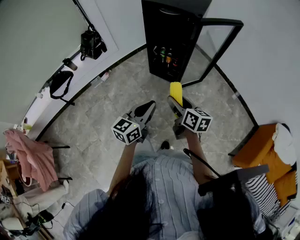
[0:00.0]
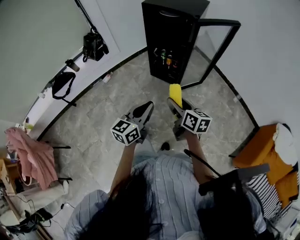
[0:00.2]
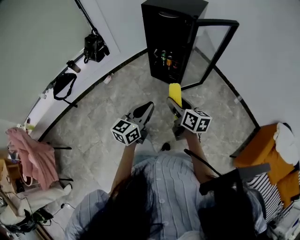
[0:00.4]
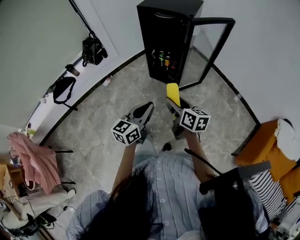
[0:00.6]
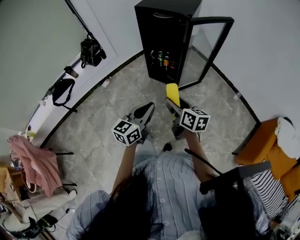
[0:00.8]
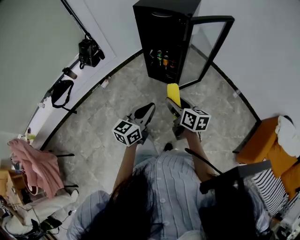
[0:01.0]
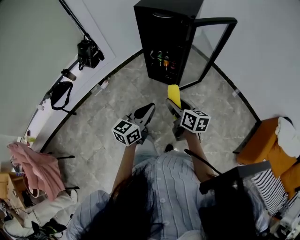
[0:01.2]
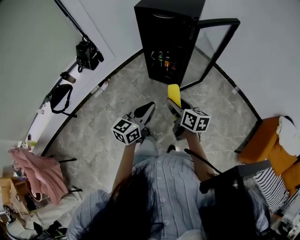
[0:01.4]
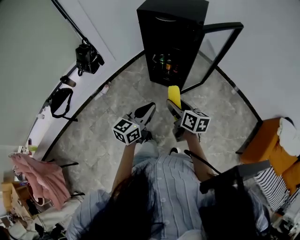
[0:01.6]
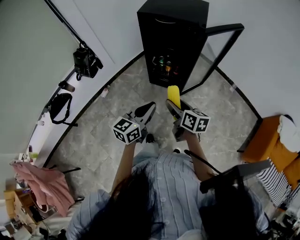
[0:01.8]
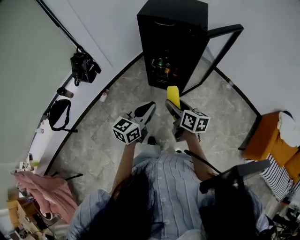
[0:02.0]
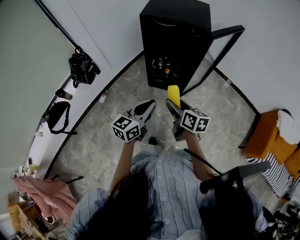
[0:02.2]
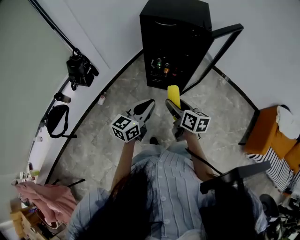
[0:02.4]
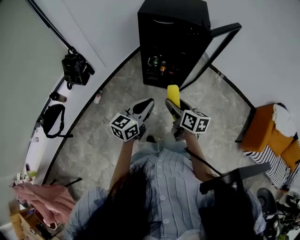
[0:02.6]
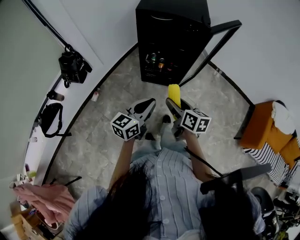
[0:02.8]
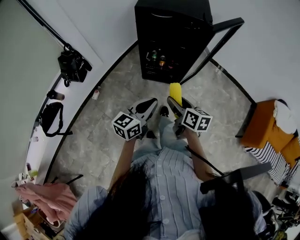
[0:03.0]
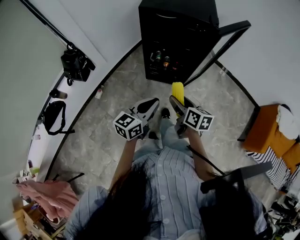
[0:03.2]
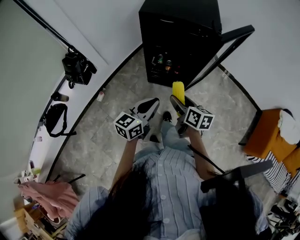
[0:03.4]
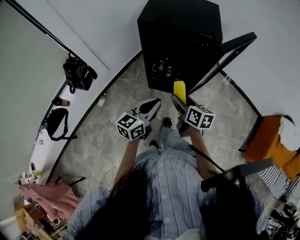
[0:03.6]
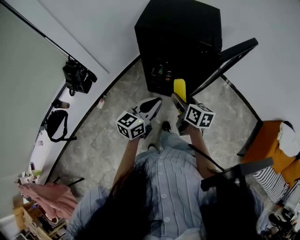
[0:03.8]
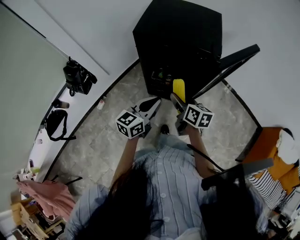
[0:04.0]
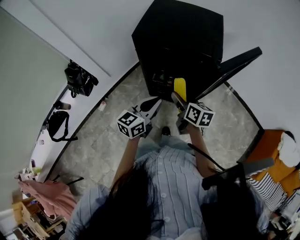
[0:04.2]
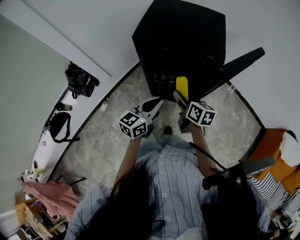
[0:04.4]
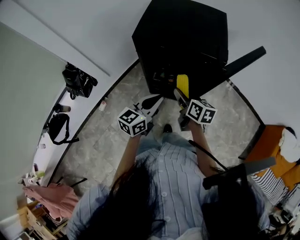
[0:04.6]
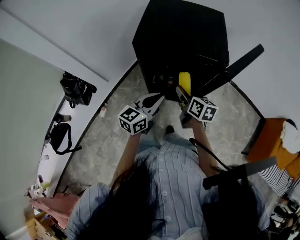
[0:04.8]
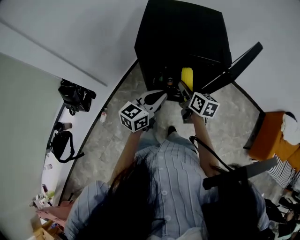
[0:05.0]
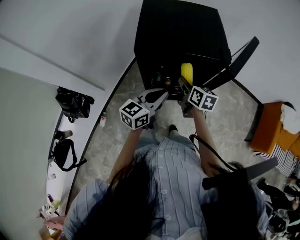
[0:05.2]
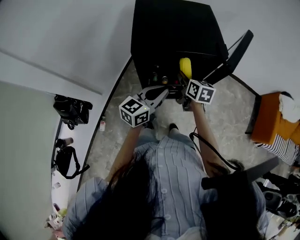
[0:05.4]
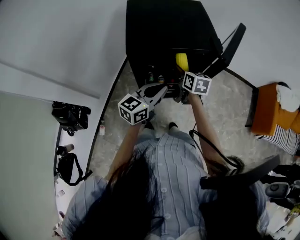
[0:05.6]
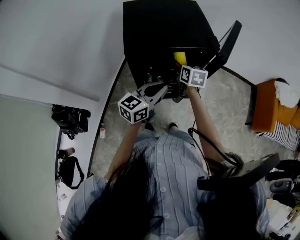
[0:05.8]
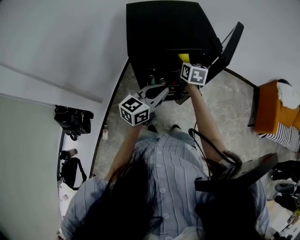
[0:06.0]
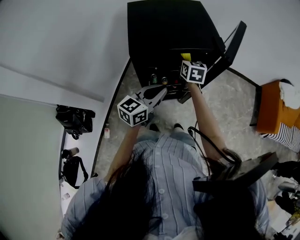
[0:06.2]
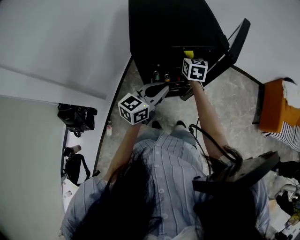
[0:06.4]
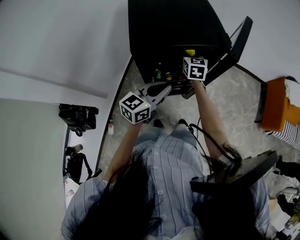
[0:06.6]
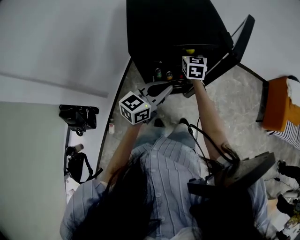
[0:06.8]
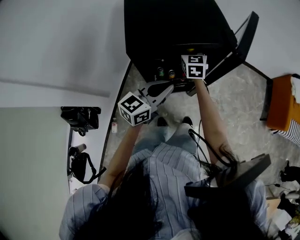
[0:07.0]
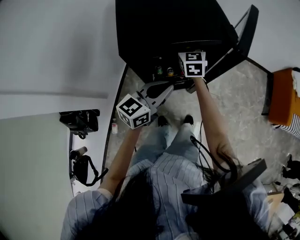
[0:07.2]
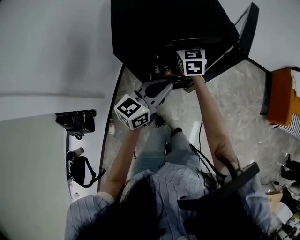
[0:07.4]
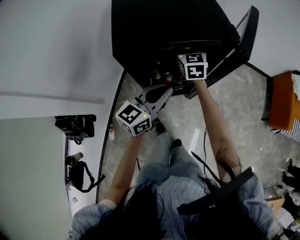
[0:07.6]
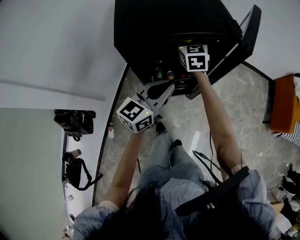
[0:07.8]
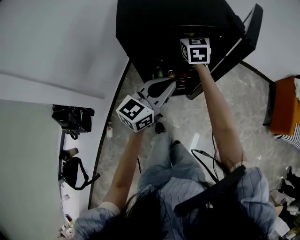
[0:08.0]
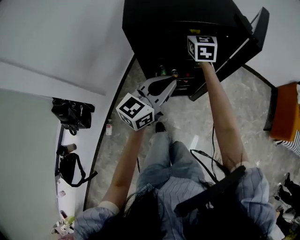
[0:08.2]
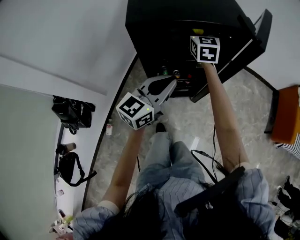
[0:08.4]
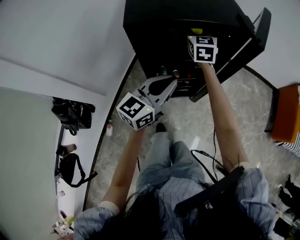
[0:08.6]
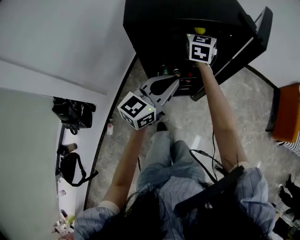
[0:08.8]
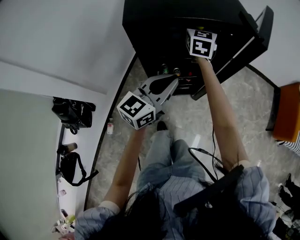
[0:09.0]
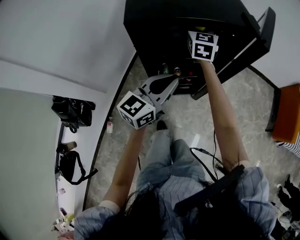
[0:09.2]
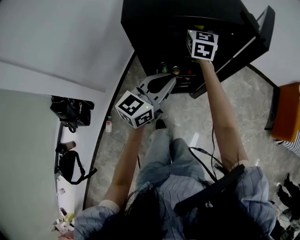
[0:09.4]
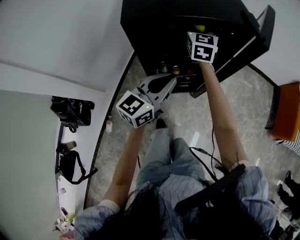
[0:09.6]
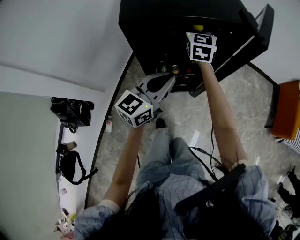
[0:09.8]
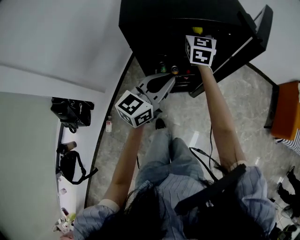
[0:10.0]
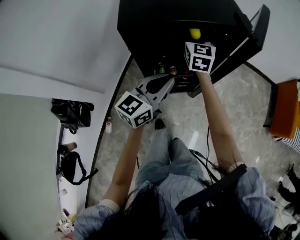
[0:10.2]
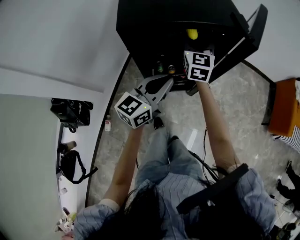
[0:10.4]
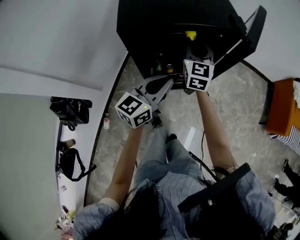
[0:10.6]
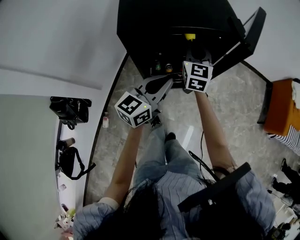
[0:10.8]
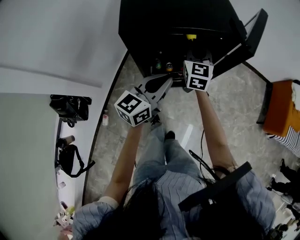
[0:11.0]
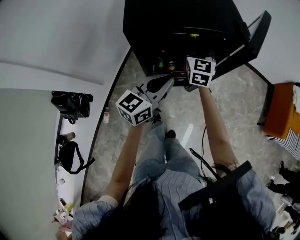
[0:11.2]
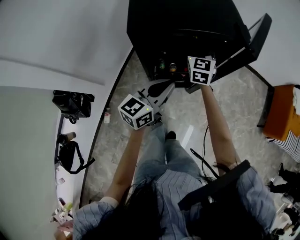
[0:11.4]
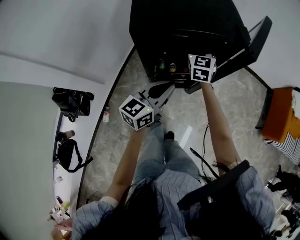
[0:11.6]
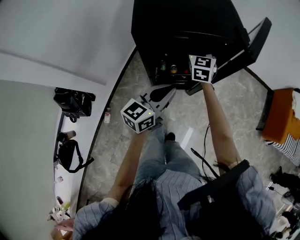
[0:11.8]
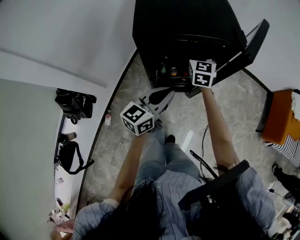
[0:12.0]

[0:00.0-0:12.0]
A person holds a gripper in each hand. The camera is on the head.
0:00.0 to 0:01.6: Both grippers travel together forward and to the left, approximately 10 cm.
0:01.6 to 0:03.0: The two grippers go about 10 cm to the left and forward.
0:03.0 to 0:04.4: Both grippers move forward, about 25 cm.
0:04.4 to 0:06.0: The right gripper changes place by approximately 15 cm, and swivels about 40 degrees. The left gripper changes place by about 10 cm, and rotates roughly 30 degrees.
0:06.0 to 0:07.6: The right gripper goes roughly 5 cm forward, and turns by roughly 20 degrees.
0:07.6 to 0:09.0: The grippers move only a little.
0:09.0 to 0:10.4: The right gripper goes some 5 cm backward.
0:10.4 to 0:12.0: The right gripper closes its fingers.

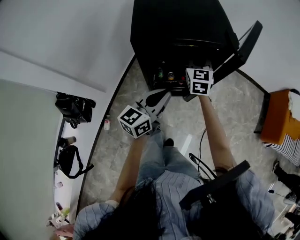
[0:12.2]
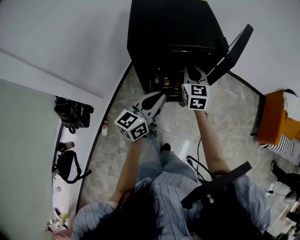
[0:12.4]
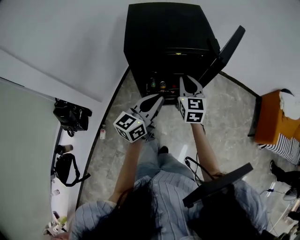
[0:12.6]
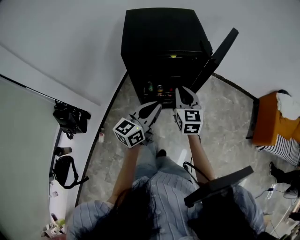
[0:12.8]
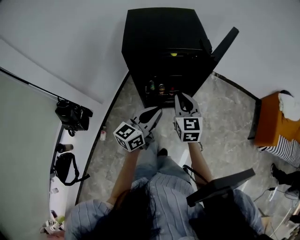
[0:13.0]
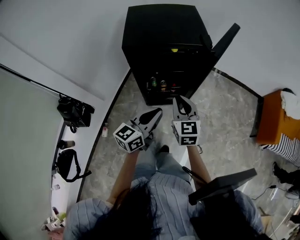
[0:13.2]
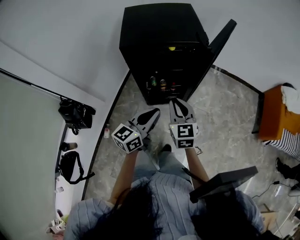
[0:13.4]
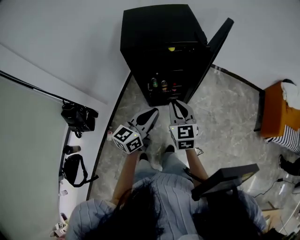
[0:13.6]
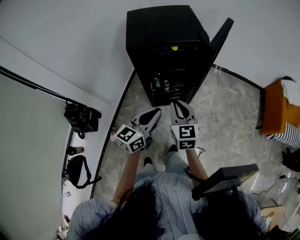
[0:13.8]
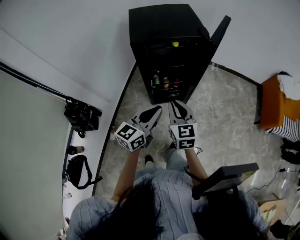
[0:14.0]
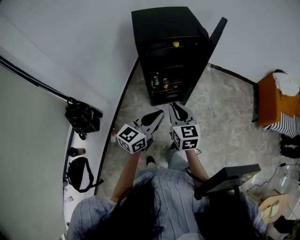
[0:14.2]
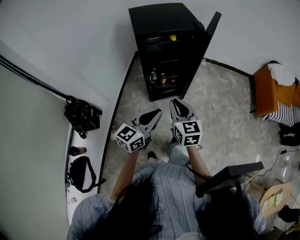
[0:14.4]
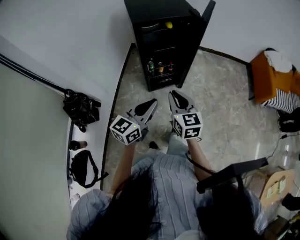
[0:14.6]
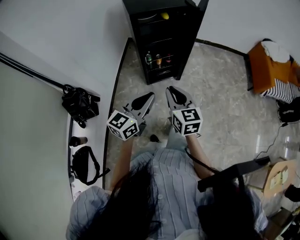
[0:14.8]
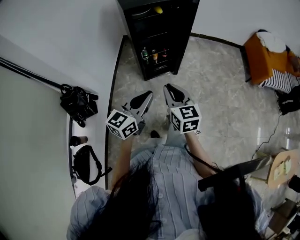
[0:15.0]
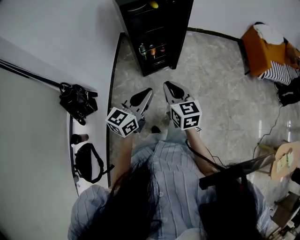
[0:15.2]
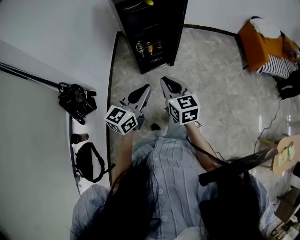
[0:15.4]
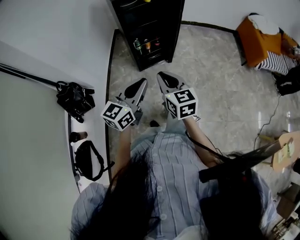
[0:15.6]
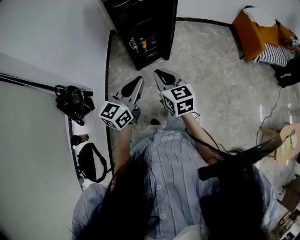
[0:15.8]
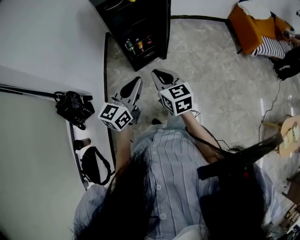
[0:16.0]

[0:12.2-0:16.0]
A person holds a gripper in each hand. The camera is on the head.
0:12.2 to 0:13.4: The left gripper travels backward and to the right by roughly 10 cm; the right gripper shifts approximately 25 cm backward.
0:13.4 to 0:14.8: The grippers both shift backward by roughly 25 cm.
0:14.8 to 0:16.0: The right gripper moves backward, roughly 5 cm.

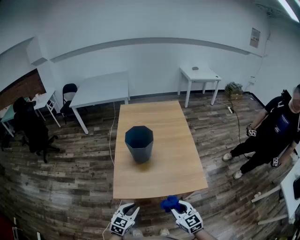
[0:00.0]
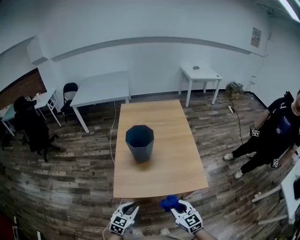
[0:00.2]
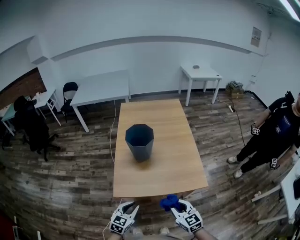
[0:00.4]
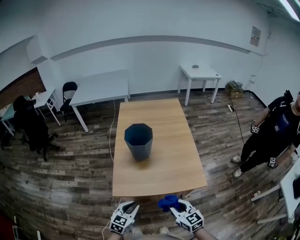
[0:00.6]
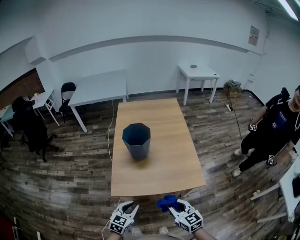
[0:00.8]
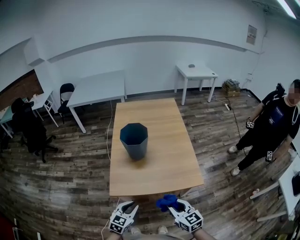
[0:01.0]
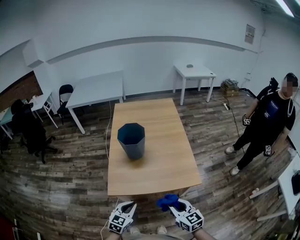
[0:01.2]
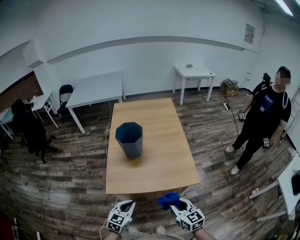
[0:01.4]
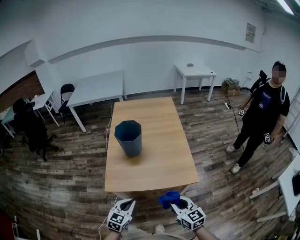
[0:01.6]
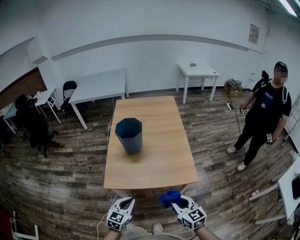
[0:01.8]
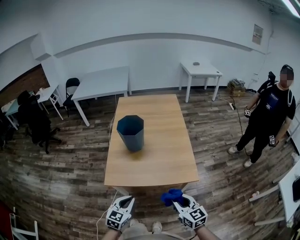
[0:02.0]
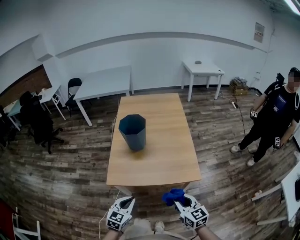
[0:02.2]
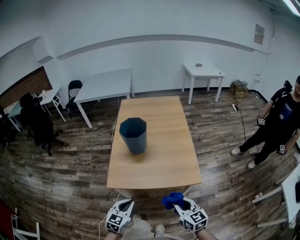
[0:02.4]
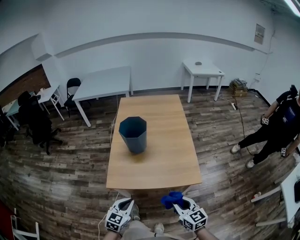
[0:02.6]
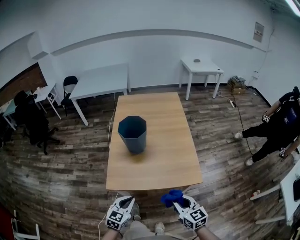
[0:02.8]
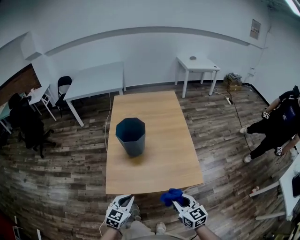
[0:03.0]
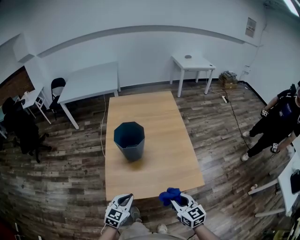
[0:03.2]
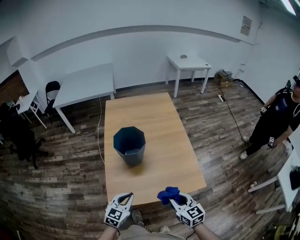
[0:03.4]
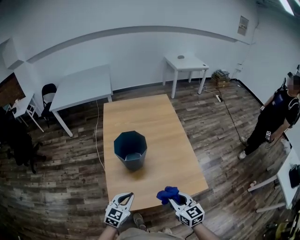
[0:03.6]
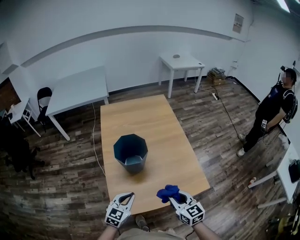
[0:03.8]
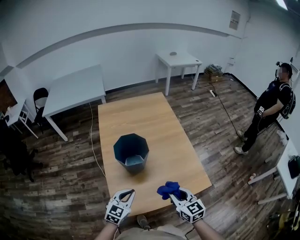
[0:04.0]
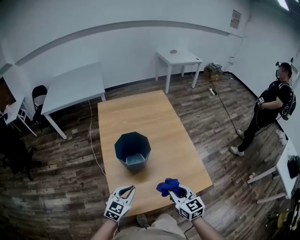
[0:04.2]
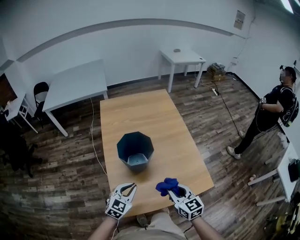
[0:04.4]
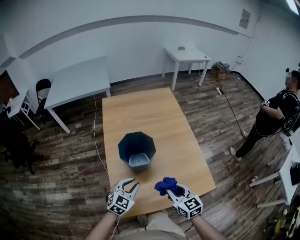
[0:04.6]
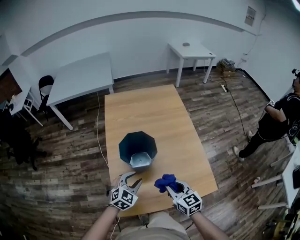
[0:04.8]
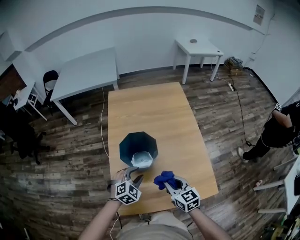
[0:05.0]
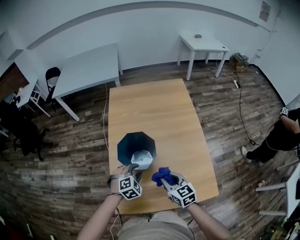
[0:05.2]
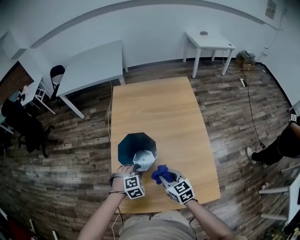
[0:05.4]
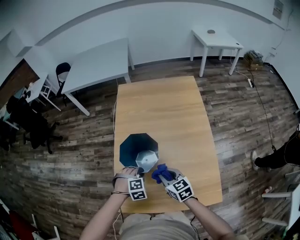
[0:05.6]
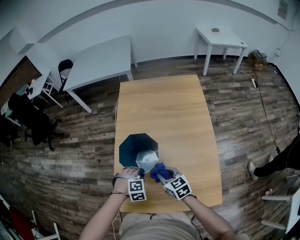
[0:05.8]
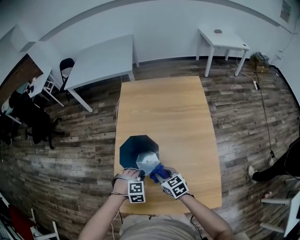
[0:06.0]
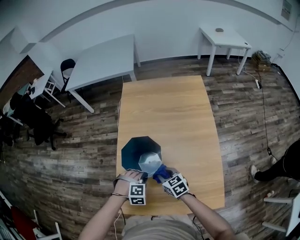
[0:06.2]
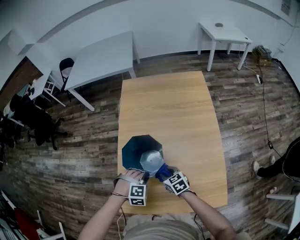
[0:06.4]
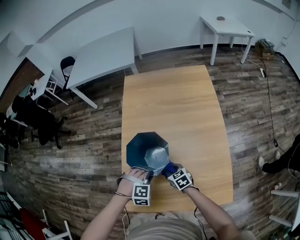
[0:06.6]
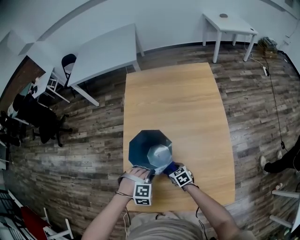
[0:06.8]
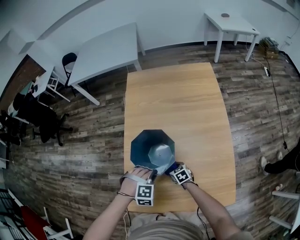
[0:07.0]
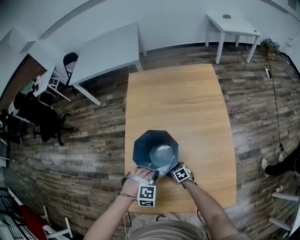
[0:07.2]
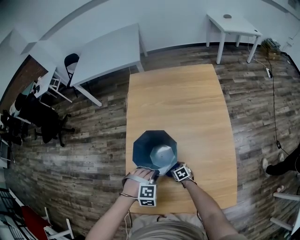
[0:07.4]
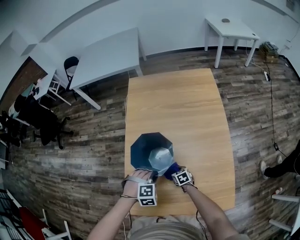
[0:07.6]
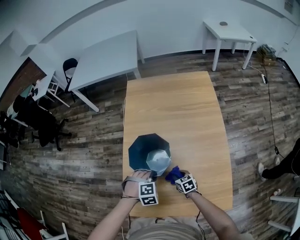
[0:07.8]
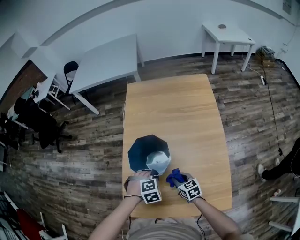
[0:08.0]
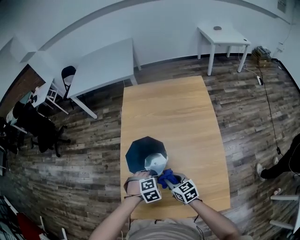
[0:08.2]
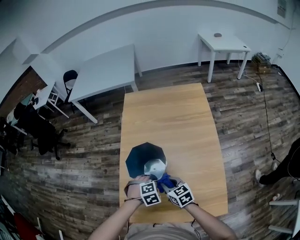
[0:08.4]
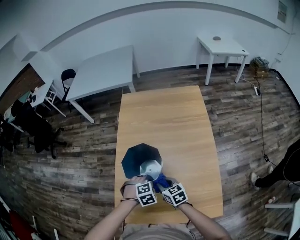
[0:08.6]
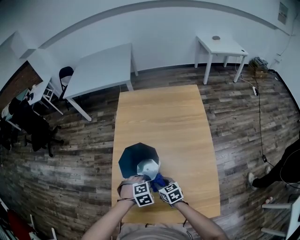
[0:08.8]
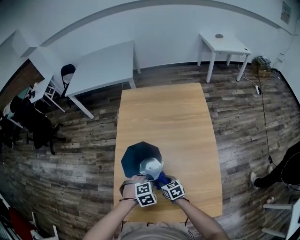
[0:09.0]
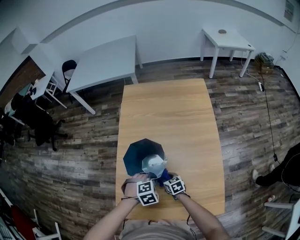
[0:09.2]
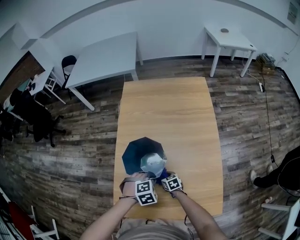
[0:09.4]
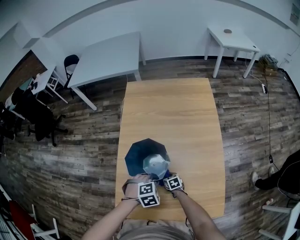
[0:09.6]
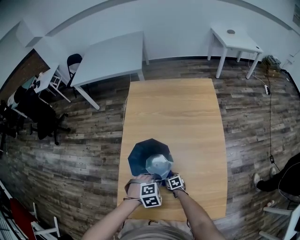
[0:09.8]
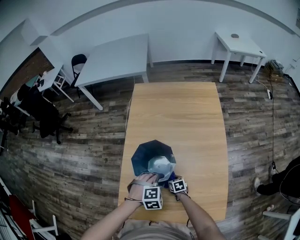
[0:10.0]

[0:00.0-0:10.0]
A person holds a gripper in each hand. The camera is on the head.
0:00.0 to 0:01.4: The right gripper shifts by approximately 10 cm.
0:02.8 to 0:04.2: The right gripper shifts by some 30 cm.
0:04.2 to 0:05.8: The right gripper shifts by roughly 25 cm, and turns by about 30 degrees.
0:05.8 to 0:07.2: The right gripper shifts approximately 25 cm downward, and swivels some 30 degrees.
0:07.2 to 0:08.6: The right gripper heads upward, covering approximately 25 cm, and swivels approximately 20 degrees.
0:08.6 to 0:10.0: The right gripper moves downward, some 20 cm, and swivels roughly 20 degrees.
